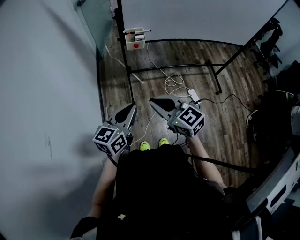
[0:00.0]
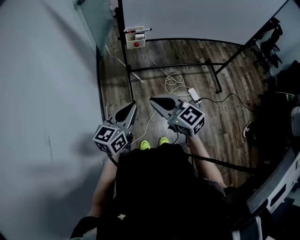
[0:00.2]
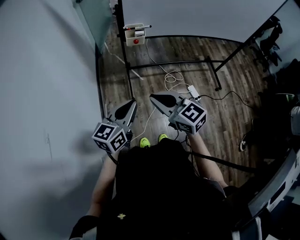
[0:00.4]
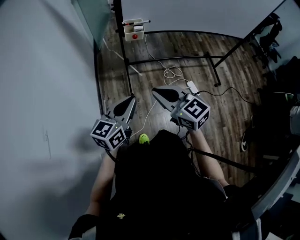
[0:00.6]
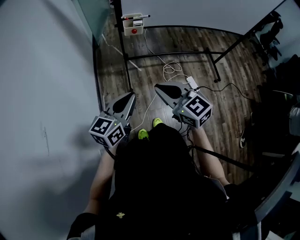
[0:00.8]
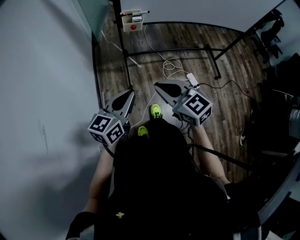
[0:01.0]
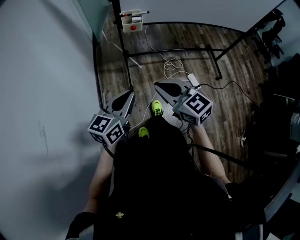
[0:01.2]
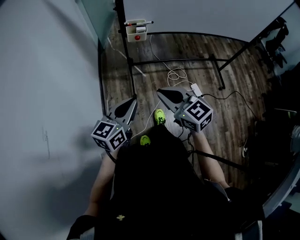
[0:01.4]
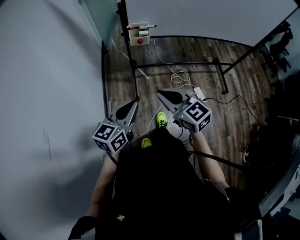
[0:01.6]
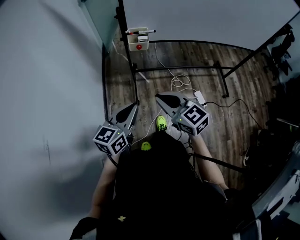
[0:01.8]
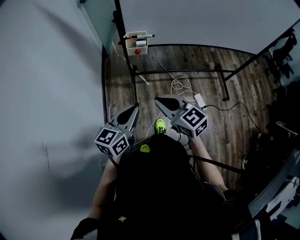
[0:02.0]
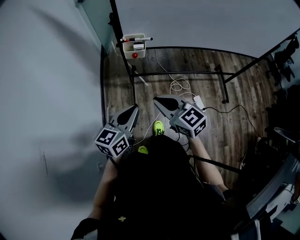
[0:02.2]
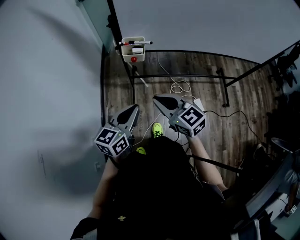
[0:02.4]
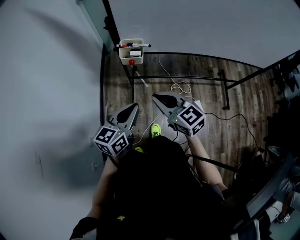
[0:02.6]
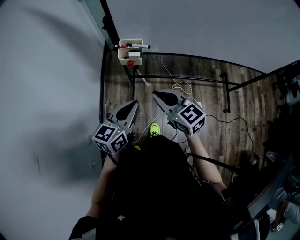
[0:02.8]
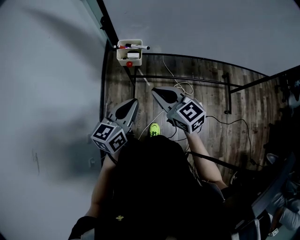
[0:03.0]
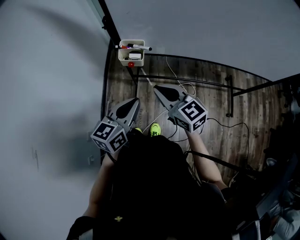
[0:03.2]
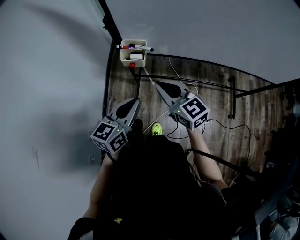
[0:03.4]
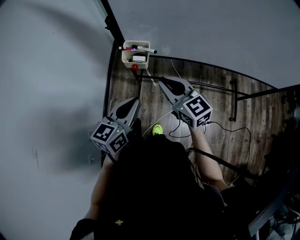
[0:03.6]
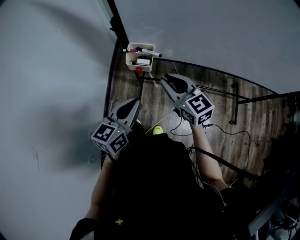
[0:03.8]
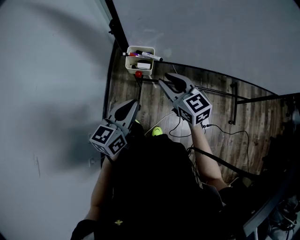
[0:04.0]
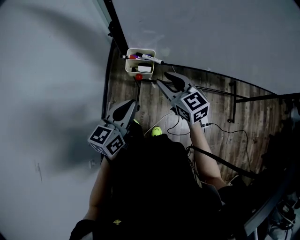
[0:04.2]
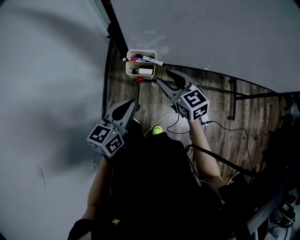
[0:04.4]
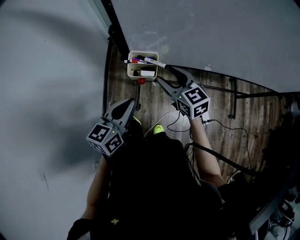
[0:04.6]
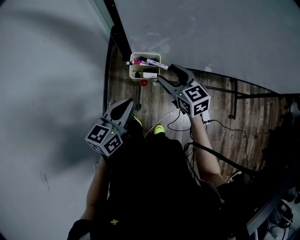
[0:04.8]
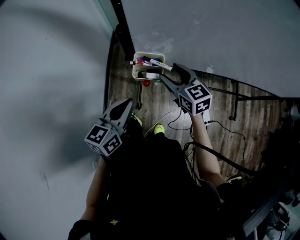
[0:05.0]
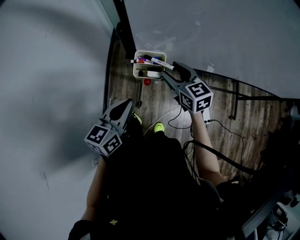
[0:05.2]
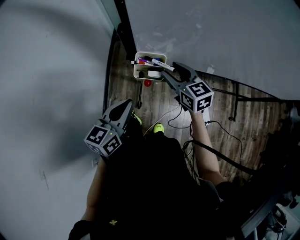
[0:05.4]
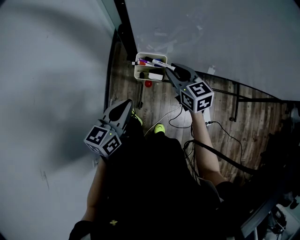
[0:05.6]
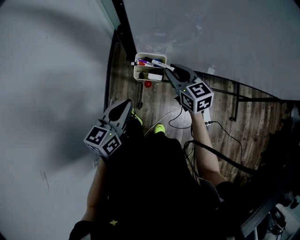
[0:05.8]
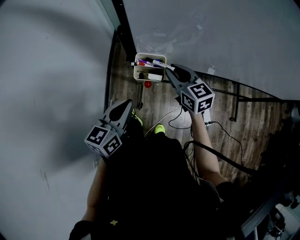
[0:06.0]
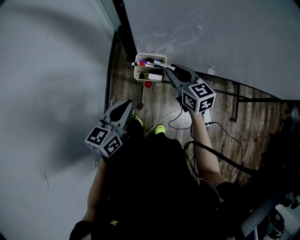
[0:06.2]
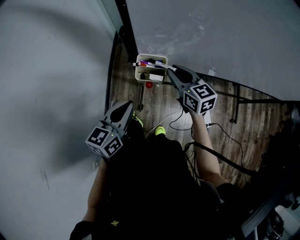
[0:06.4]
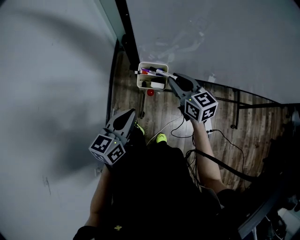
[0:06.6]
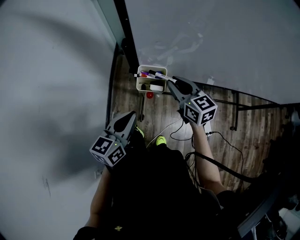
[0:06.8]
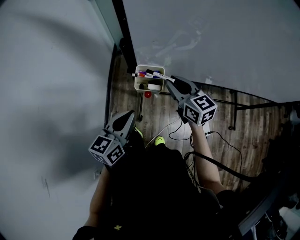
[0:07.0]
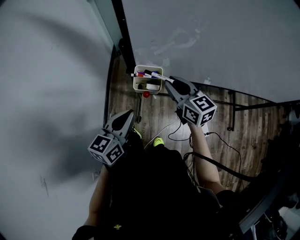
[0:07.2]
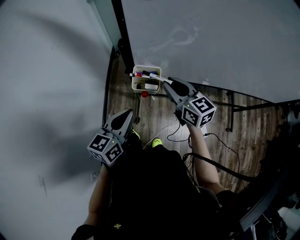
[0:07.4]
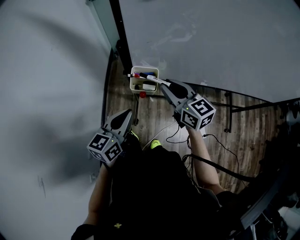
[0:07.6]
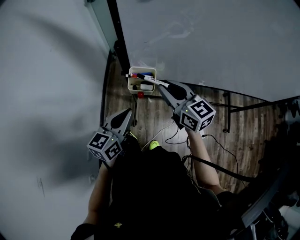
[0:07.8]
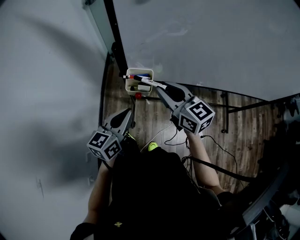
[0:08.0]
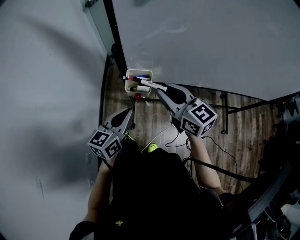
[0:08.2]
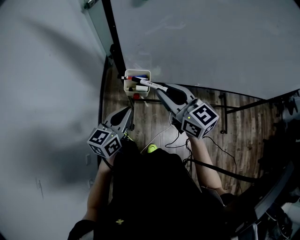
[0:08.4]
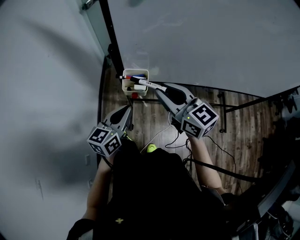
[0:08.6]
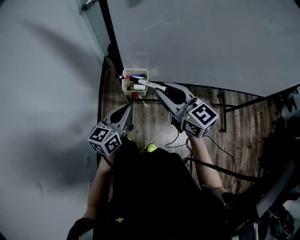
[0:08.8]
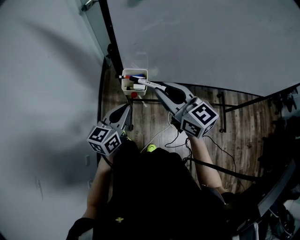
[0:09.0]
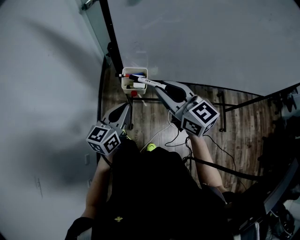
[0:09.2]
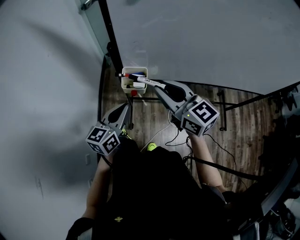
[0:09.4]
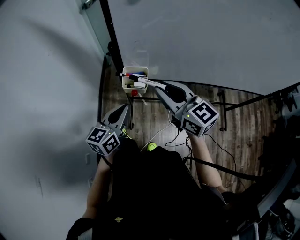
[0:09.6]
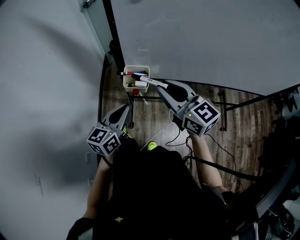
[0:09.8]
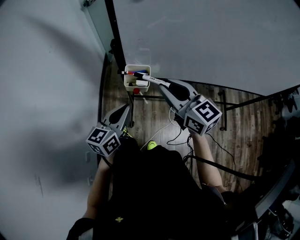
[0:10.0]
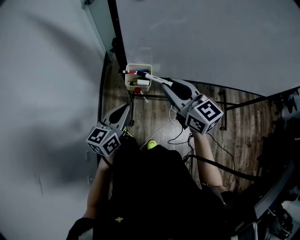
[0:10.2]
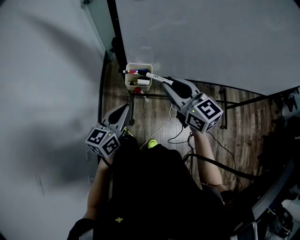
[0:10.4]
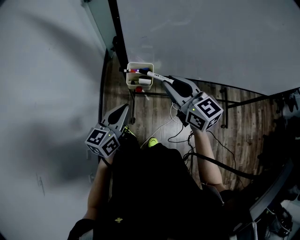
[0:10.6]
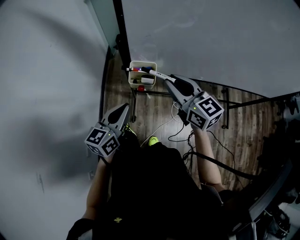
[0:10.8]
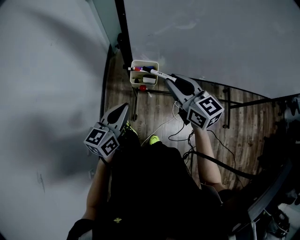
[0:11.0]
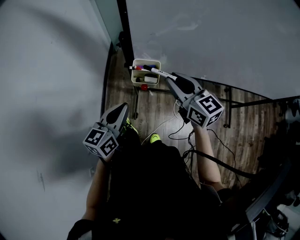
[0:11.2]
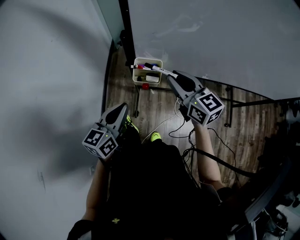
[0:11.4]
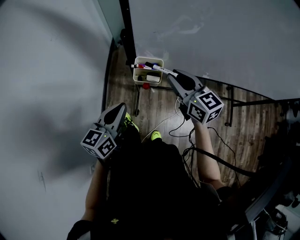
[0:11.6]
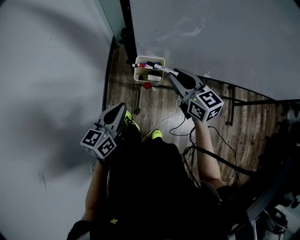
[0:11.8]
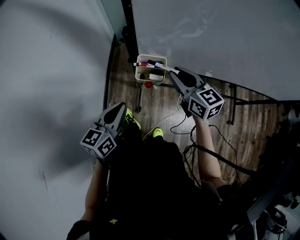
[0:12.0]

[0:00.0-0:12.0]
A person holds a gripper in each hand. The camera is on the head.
0:00.0 to 0:01.6: The grippers make only small movements.
0:01.6 to 0:03.0: Both grippers travel together forward and to the right, approximately 20 cm.
0:03.0 to 0:04.4: The right gripper moves forward, about 15 cm, and opens up. Meanwhile the left gripper heads forward, covering about 10 cm.
0:04.4 to 0:06.0: The left gripper ends up approximately 5 cm from where it was, while the right gripper moves forward, roughly 5 cm.
0:06.0 to 0:07.6: The right gripper travels upward by approximately 10 cm.
0:07.6 to 0:09.0: The right gripper heads upward and backward, covering approximately 10 cm.
0:09.0 to 0:10.4: There are only small adjustments of the grippers.
0:10.4 to 0:12.0: The right gripper heads downward and forward, covering some 10 cm; the left gripper goes some 5 cm to the left.

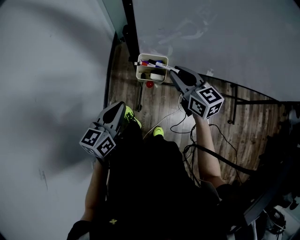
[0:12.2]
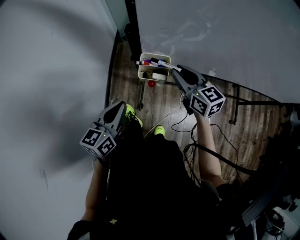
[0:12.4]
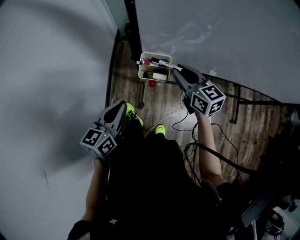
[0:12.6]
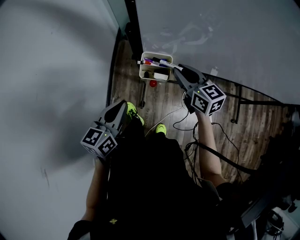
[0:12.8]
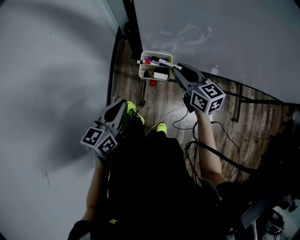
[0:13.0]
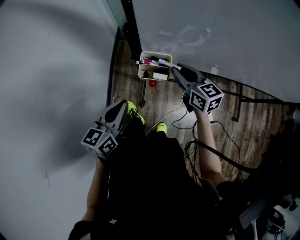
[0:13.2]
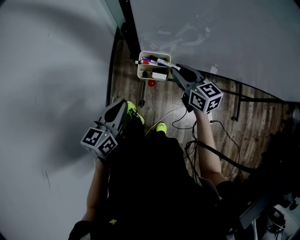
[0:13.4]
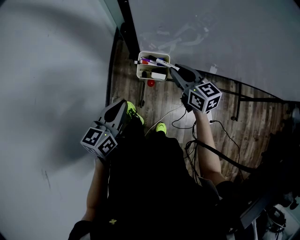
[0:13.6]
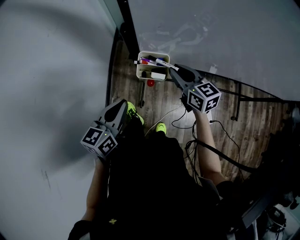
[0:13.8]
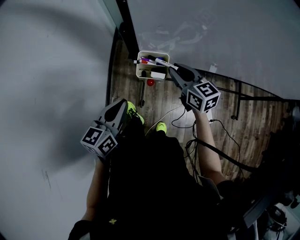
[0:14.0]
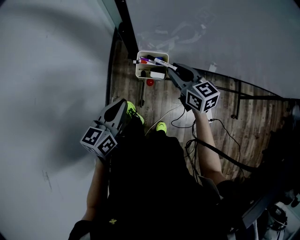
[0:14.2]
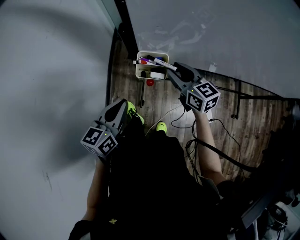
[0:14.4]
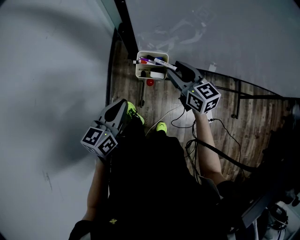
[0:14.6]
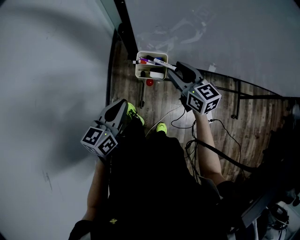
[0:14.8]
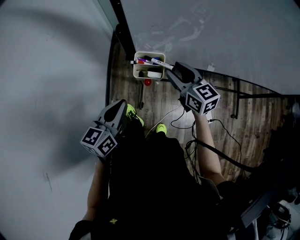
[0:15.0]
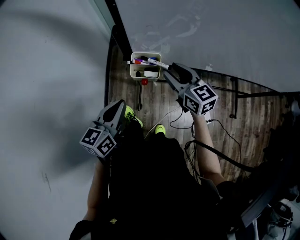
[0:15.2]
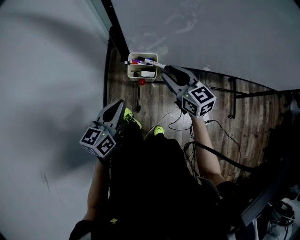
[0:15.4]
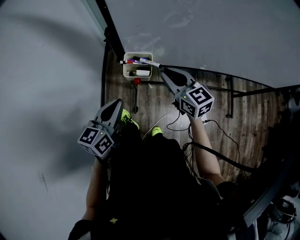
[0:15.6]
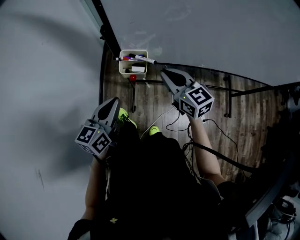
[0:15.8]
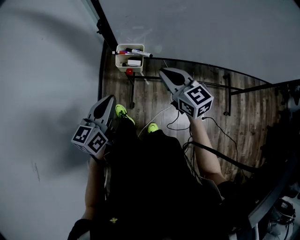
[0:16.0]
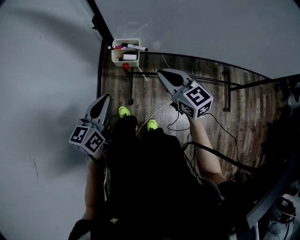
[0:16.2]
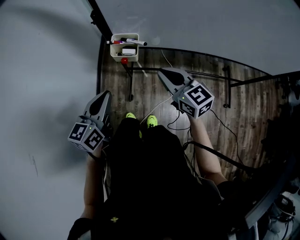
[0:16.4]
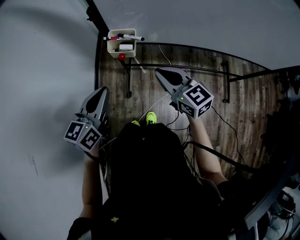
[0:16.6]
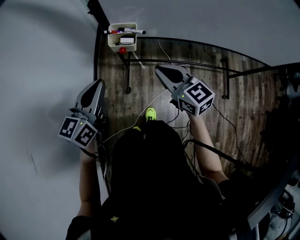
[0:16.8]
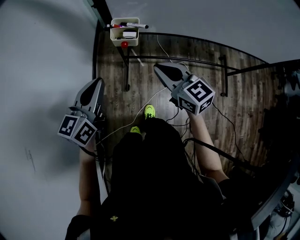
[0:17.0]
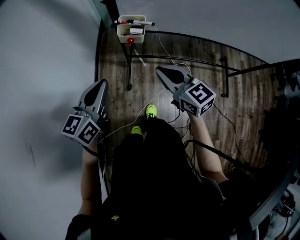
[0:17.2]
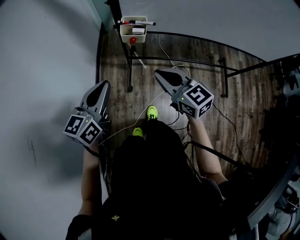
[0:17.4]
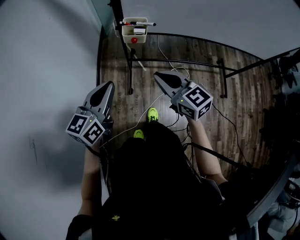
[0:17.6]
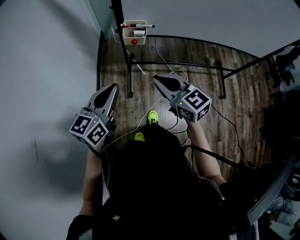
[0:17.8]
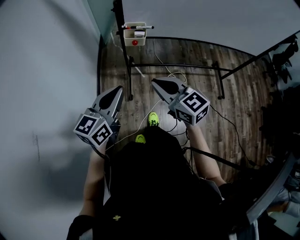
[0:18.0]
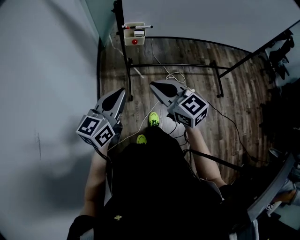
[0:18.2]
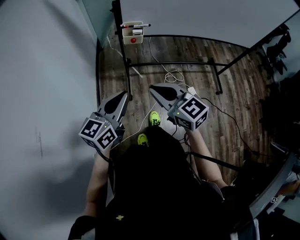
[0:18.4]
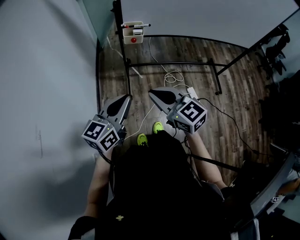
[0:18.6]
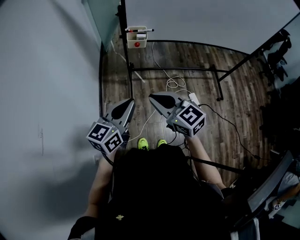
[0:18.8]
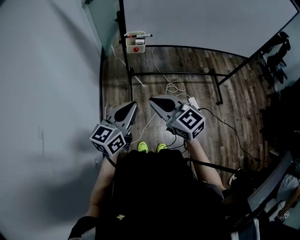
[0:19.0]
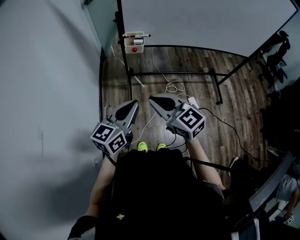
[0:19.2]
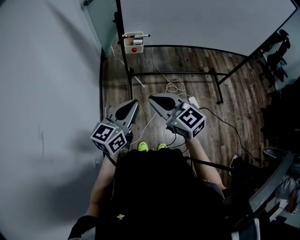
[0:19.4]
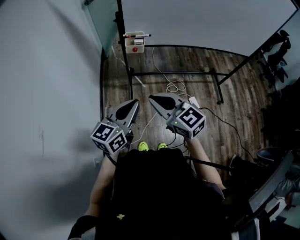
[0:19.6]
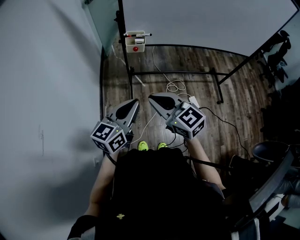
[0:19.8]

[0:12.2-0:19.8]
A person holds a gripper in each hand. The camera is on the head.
0:12.2 to 0:15.2: The grippers stay close to where they were, moving slightly.
0:15.2 to 0:16.8: The left gripper travels backward and upward by roughly 10 cm. The right gripper is displaced backward by roughly 15 cm, and closes up.
0:16.8 to 0:18.2: The left gripper is displaced backward by approximately 15 cm. Meanwhile the right gripper moves backward and to the left, roughly 25 cm.
0:18.2 to 0:19.8: The two grippers go about 5 cm backward.

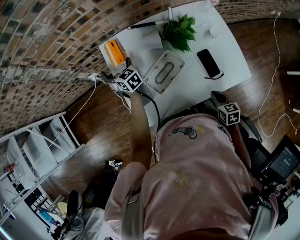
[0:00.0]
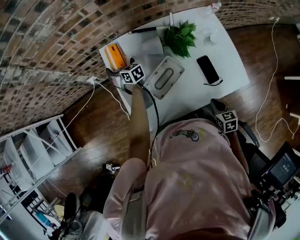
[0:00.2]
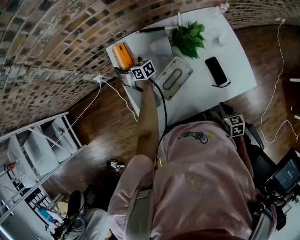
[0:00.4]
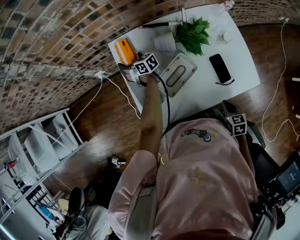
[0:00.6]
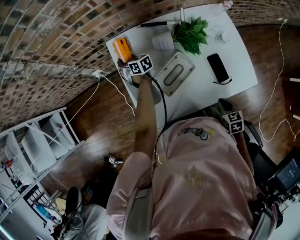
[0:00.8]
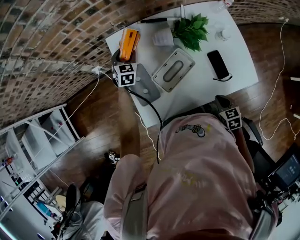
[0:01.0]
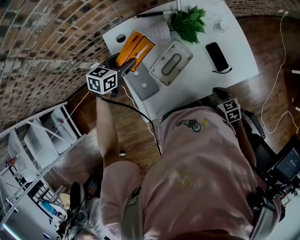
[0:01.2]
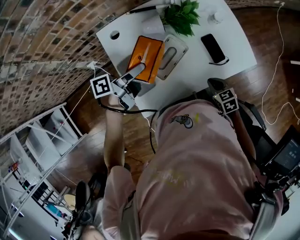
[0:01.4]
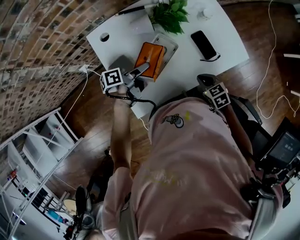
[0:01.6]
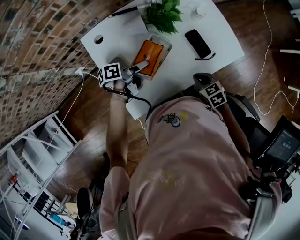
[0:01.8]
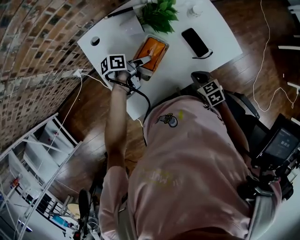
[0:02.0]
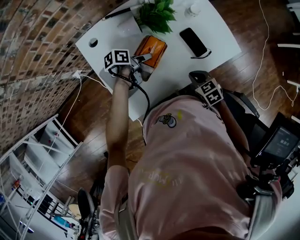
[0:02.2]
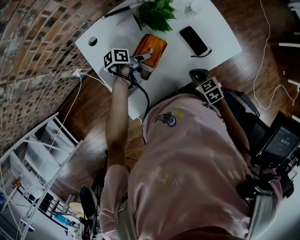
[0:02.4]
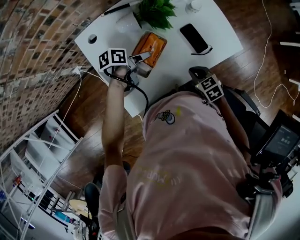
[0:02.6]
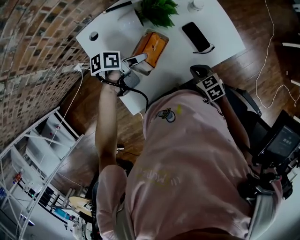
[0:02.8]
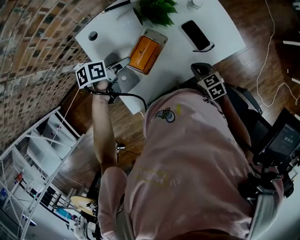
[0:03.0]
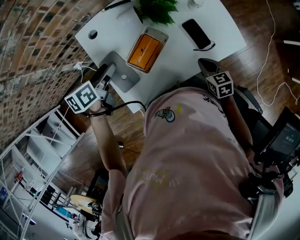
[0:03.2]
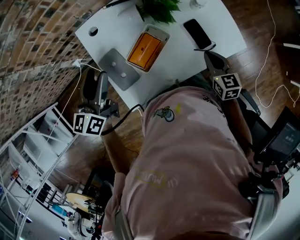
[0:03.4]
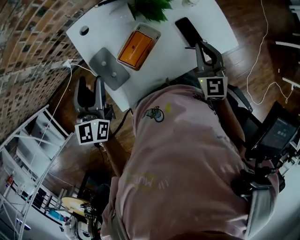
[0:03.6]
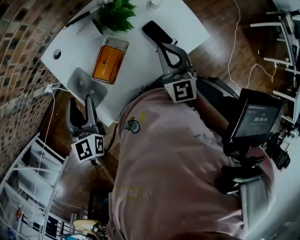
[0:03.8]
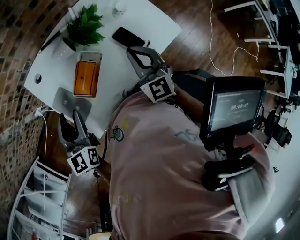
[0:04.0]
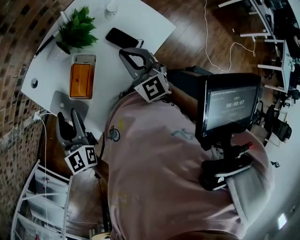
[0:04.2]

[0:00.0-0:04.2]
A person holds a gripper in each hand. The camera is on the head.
0:00.0 to 0:01.4: The right gripper changes place by roughly 5 cm, while the left gripper changes place by some 20 cm, rotates about 100 degrees, and closes up.
0:01.4 to 0:02.8: The left gripper heads downward and to the right, covering some 10 cm, and tilts its fingers about 30 degrees downward.
0:02.8 to 0:04.2: The right gripper heads upward and forward, covering approximately 20 cm, and points its fingers approximately 40 degrees further upward; the left gripper goes about 15 cm upward, and rotates some 70 degrees.
